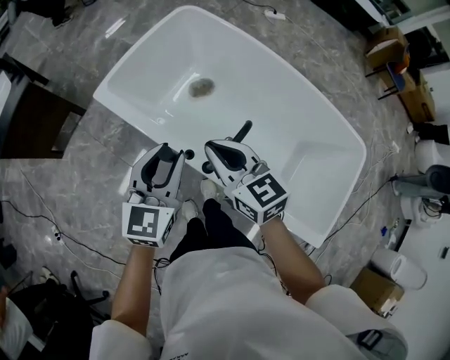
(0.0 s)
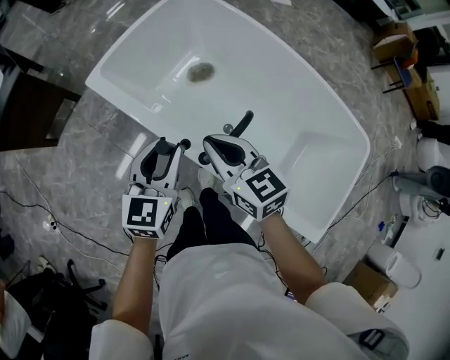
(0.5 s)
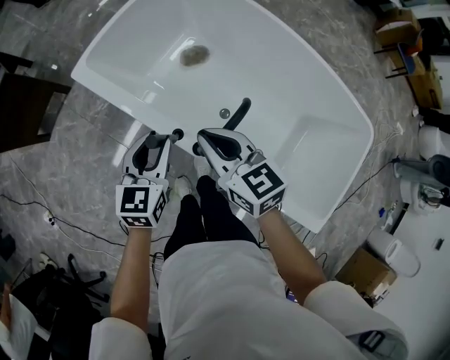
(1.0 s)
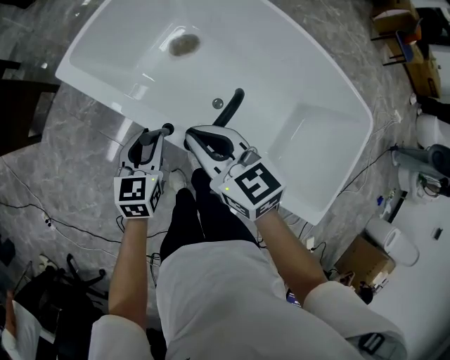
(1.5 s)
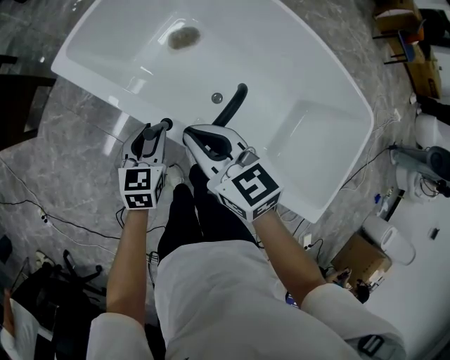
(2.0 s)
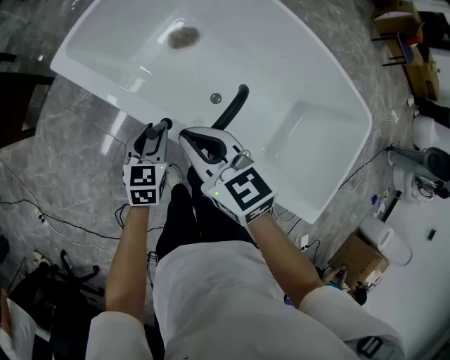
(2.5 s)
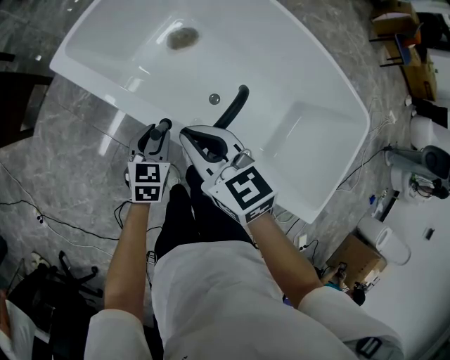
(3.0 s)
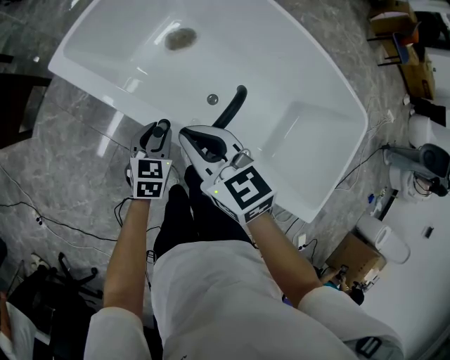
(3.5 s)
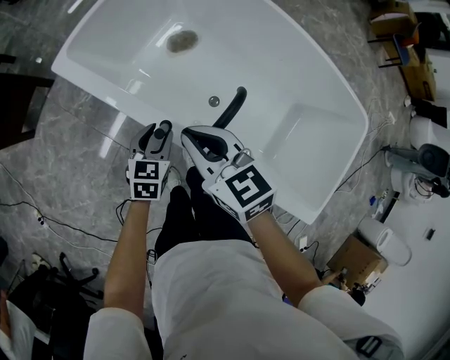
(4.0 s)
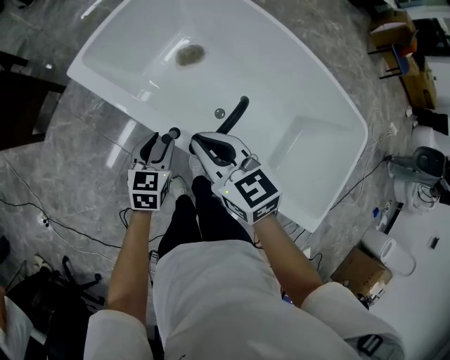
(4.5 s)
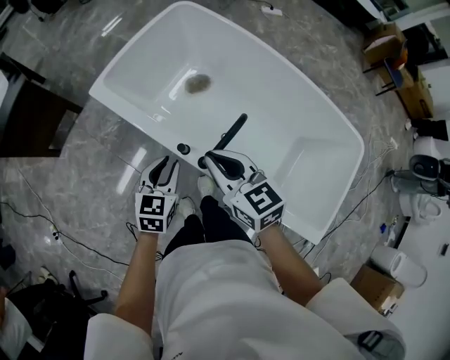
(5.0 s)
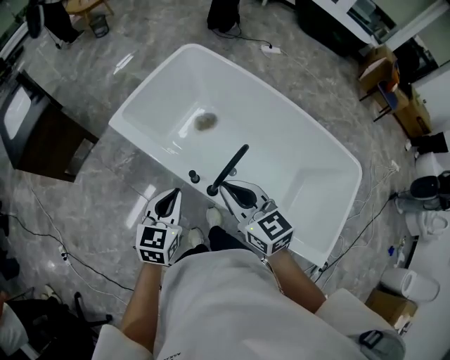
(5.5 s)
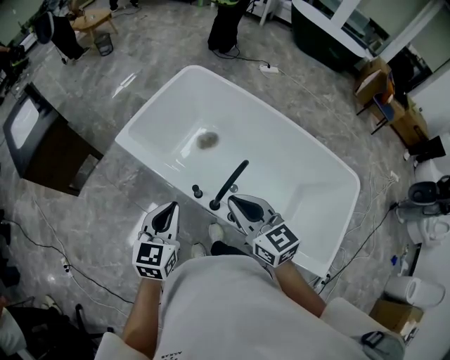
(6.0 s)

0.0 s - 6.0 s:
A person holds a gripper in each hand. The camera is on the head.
0.0 s - 2.0 s: The right gripper goes about 10 cm downward. Meanwhile the left gripper moves downward, some 25 cm, and swivels about 20 degrees.
2.0 s - 4.0 s: The grippers move only a little.
4.0 s - 6.0 s: The left gripper travels upward by roughly 30 cm, turns by approximately 20 degrees, and closes up. The right gripper moves upward and backward, approximately 20 cm.

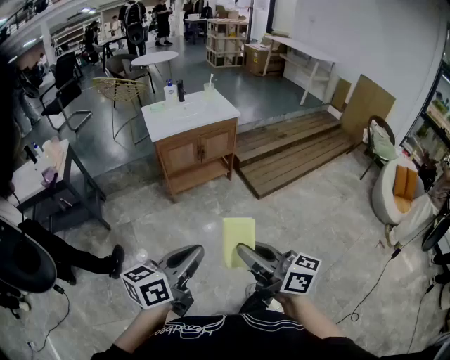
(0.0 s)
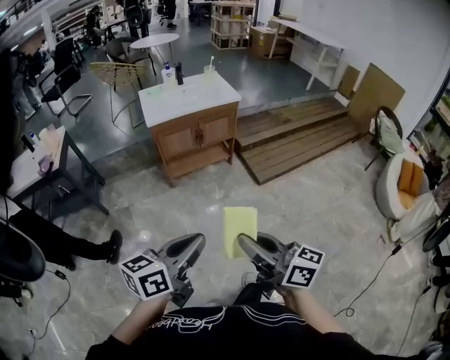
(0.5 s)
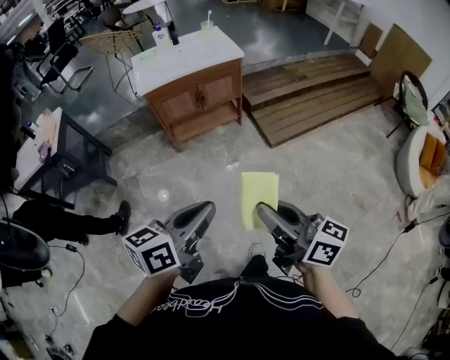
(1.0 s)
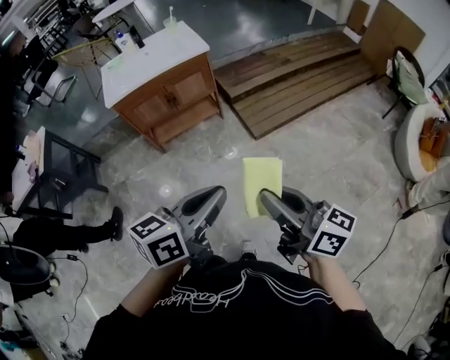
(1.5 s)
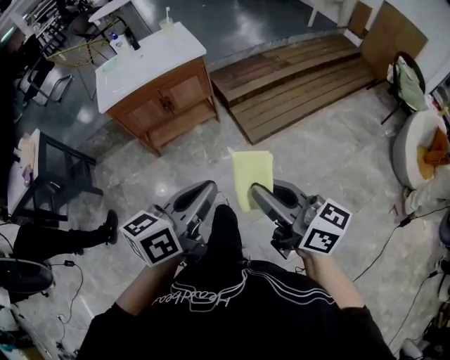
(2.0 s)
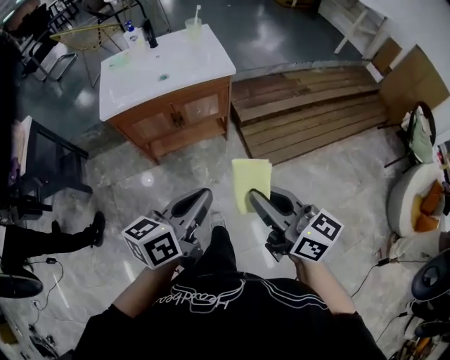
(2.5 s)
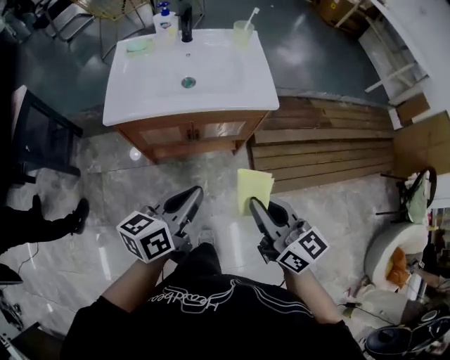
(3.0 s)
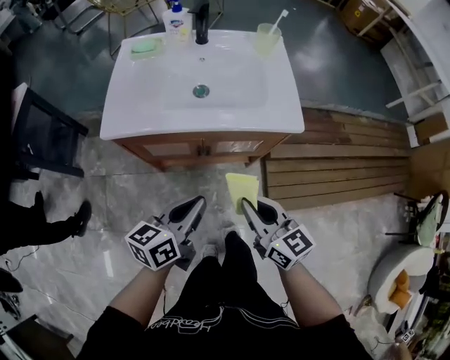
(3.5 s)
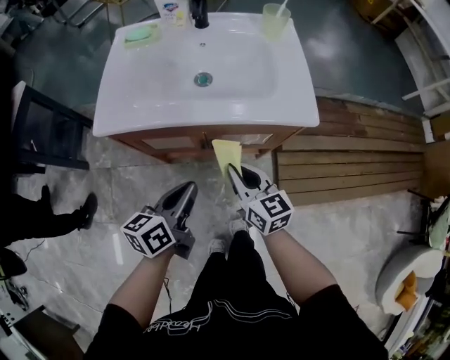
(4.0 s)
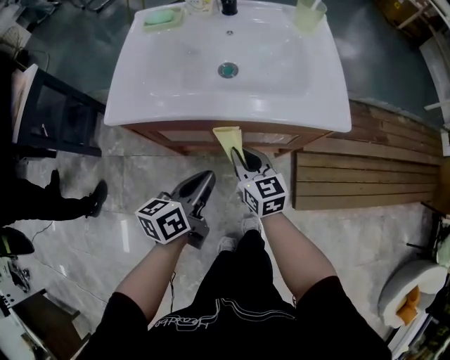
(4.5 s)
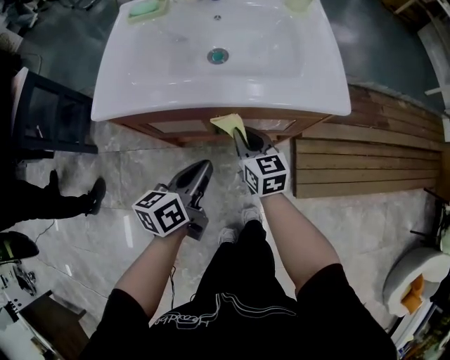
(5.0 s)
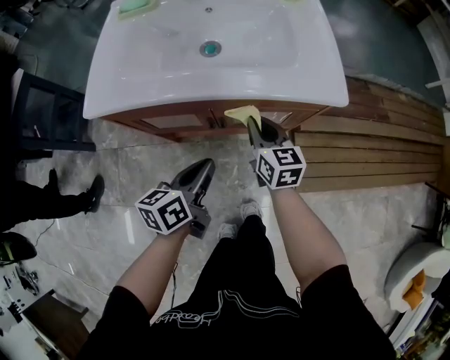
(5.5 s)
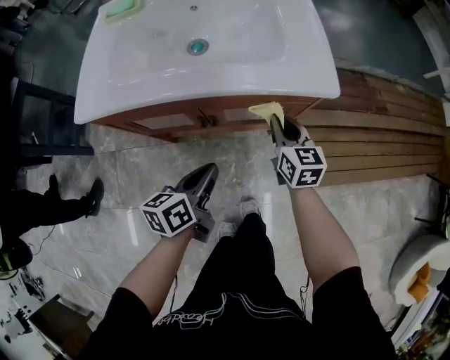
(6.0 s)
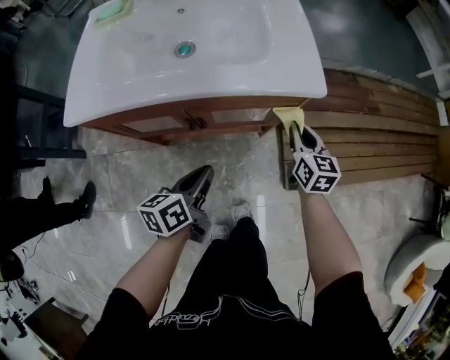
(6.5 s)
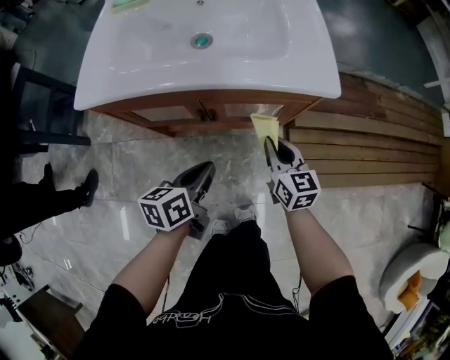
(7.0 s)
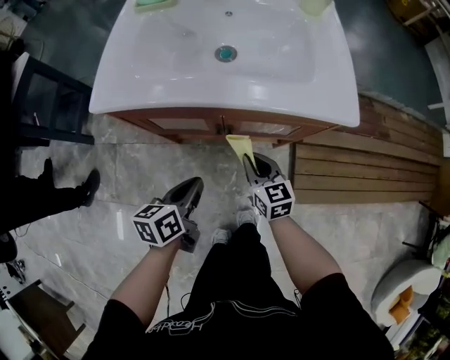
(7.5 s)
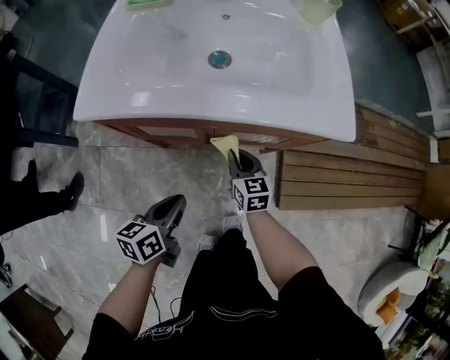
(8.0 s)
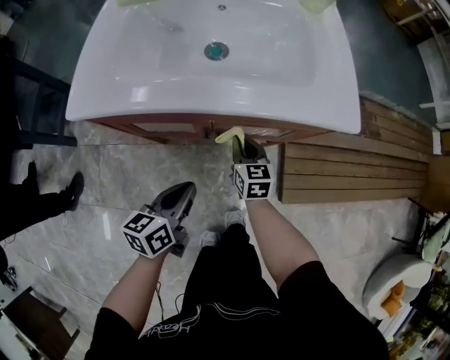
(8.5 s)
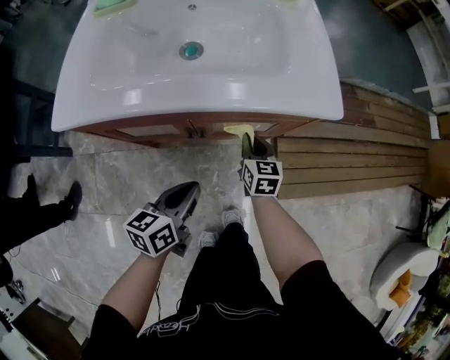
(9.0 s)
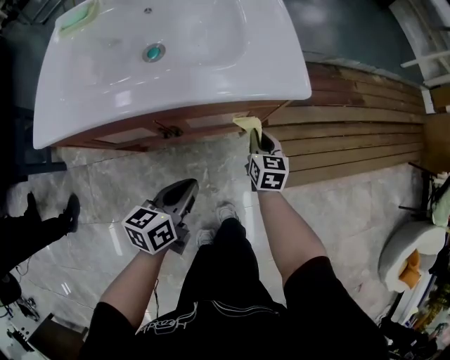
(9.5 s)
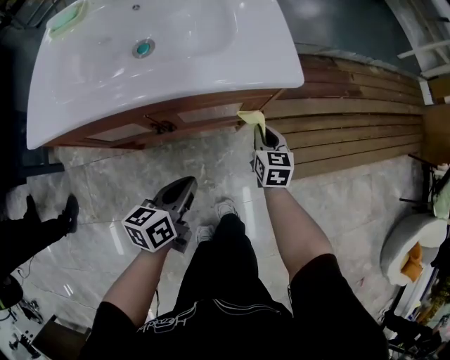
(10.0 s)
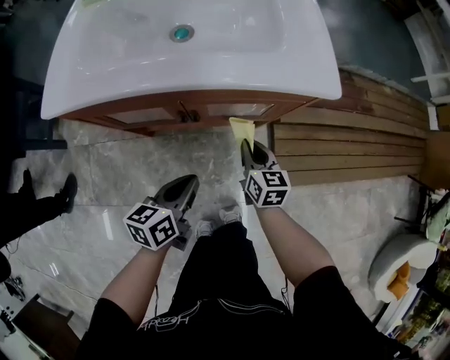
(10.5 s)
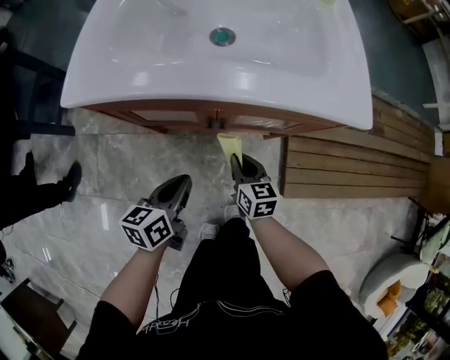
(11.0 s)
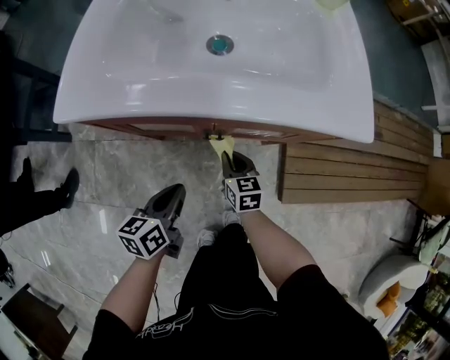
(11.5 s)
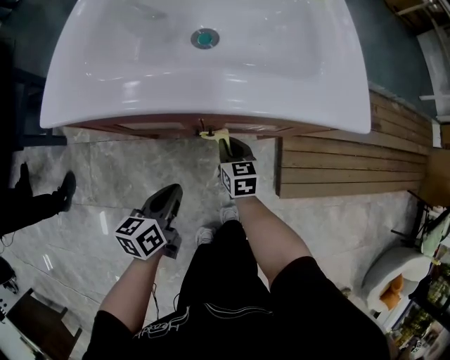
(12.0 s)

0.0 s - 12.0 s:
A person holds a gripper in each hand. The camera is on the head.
0.0 s - 2.0 s: Both grippers travel together to the right and forward, about 40 cm.
2.0 s - 4.0 s: Both grippers are carried forward, some 60 cm. Both grippers travel together downward, roughly 30 cm. The right gripper turns by approximately 30 degrees. The left gripper rotates approximately 30 degrees.
4.0 s - 6.0 s: The left gripper goes roughly 10 cm downward and to the right. The right gripper moves to the right, forward and downward, approximately 15 cm.
6.0 s - 8.0 s: The left gripper is displaced to the left by some 10 cm. Meanwhile the right gripper shifts some 15 cm to the left and downward.
8.0 s - 10.0 s: The left gripper shifts some 15 cm to the right. Meanwhile the right gripper travels to the right by approximately 20 cm, and turns by approximately 20 degrees.
10.0 s - 12.0 s: The left gripper shifts roughly 15 cm to the left. The right gripper goes some 20 cm to the left.

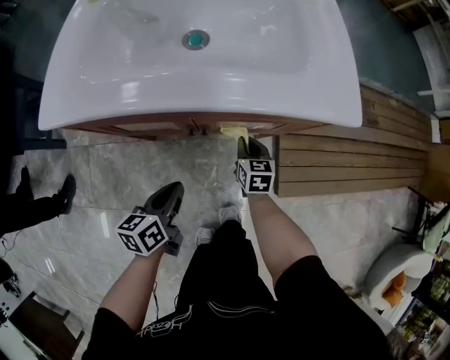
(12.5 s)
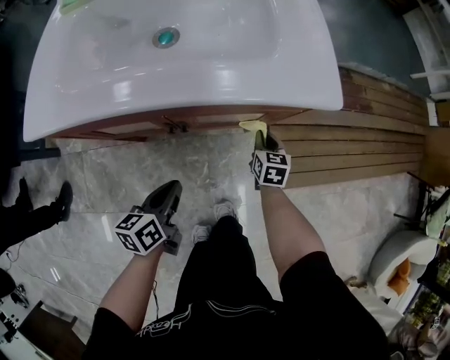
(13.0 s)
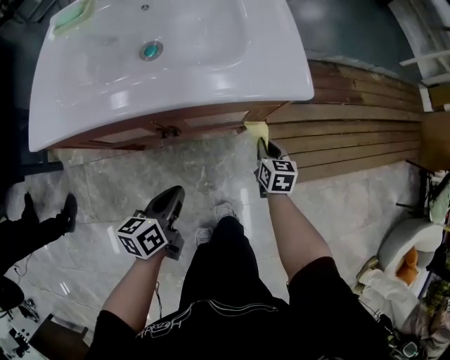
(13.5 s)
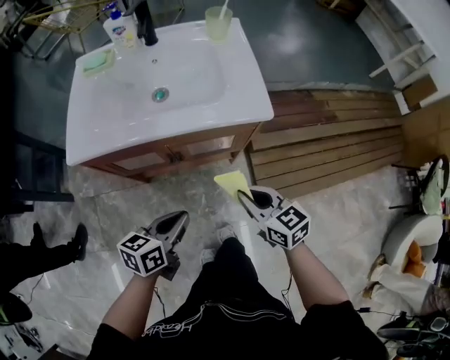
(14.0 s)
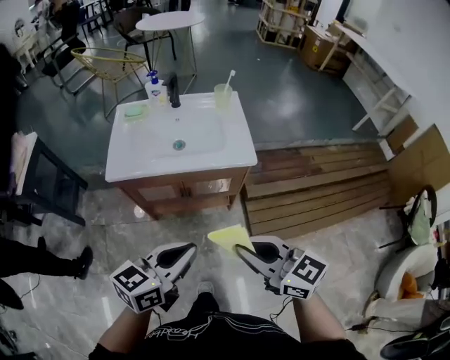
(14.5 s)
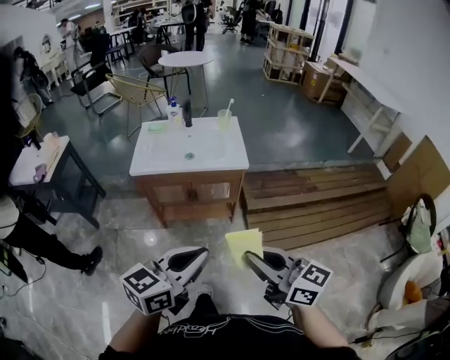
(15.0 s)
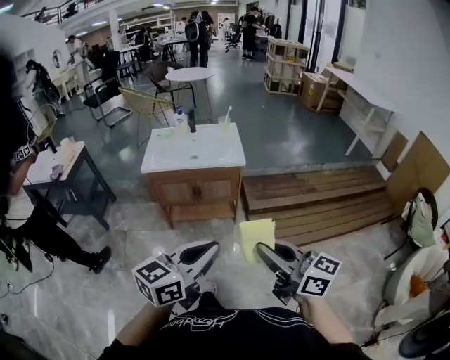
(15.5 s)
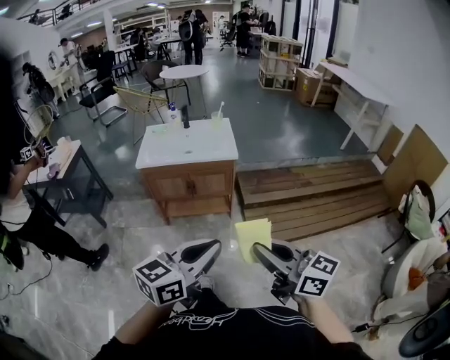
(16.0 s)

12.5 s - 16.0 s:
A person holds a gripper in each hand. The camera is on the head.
12.5 s - 14.5 s: The right gripper moves upward and backward, about 60 cm, and swivels approximately 40 degrees, while the left gripper heads upward, covering roughly 40 cm, and swivels roughly 40 degrees.
14.5 s - 16.0 s: The right gripper heads backward, covering roughly 30 cm; the left gripper goes roughly 35 cm backward and upward.

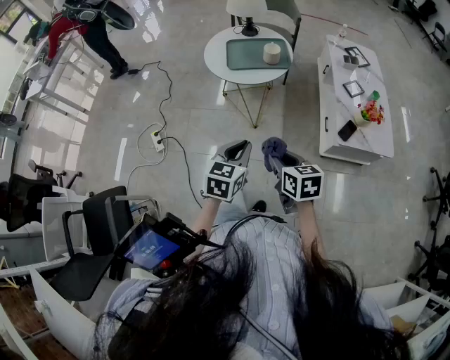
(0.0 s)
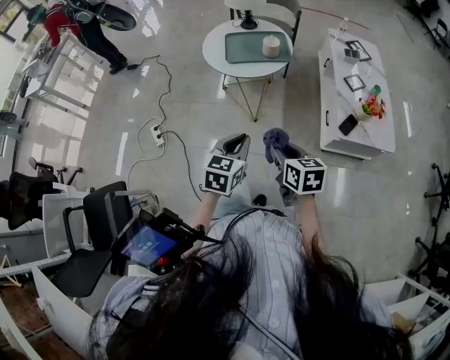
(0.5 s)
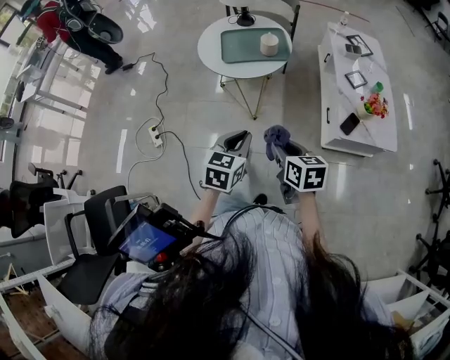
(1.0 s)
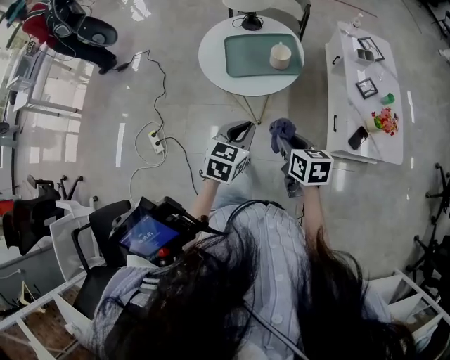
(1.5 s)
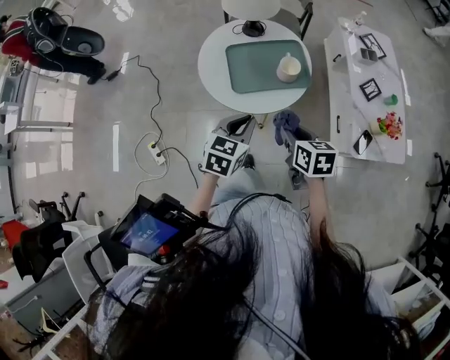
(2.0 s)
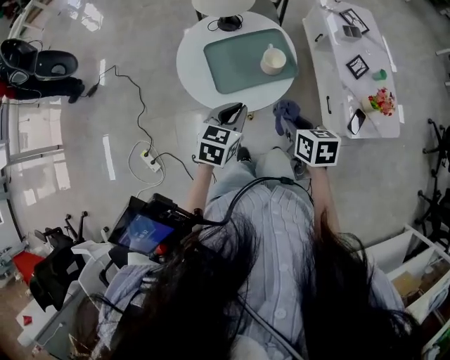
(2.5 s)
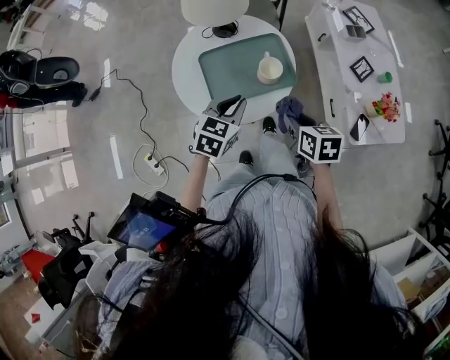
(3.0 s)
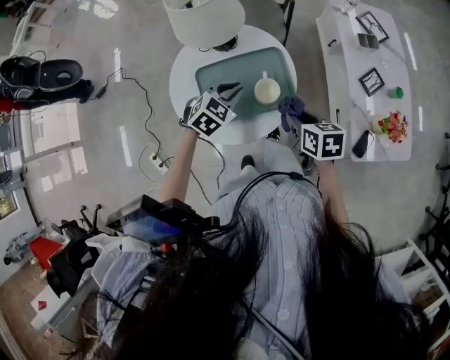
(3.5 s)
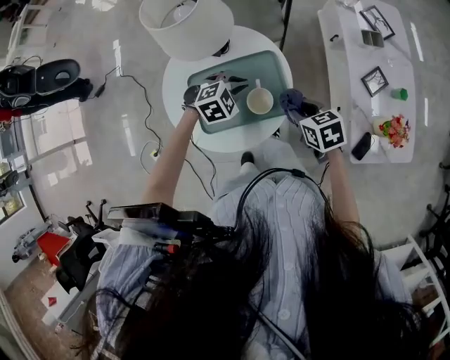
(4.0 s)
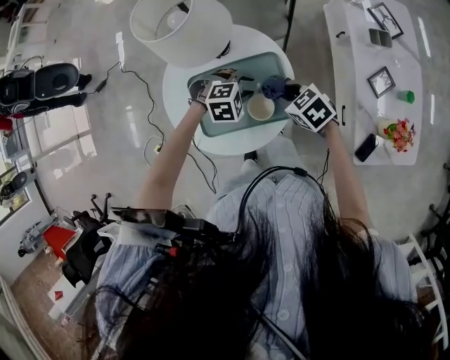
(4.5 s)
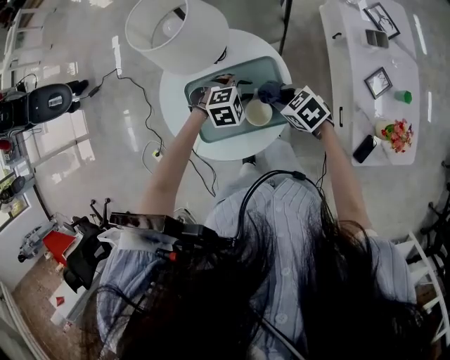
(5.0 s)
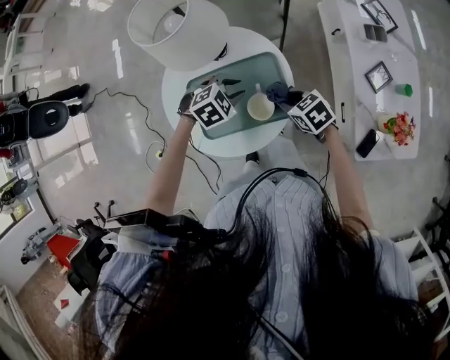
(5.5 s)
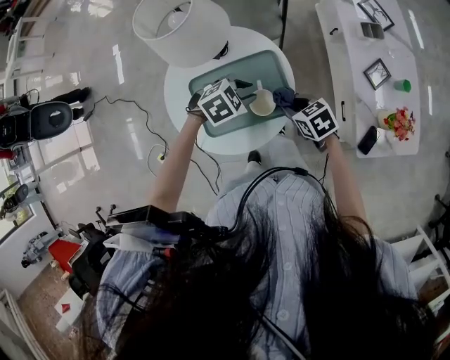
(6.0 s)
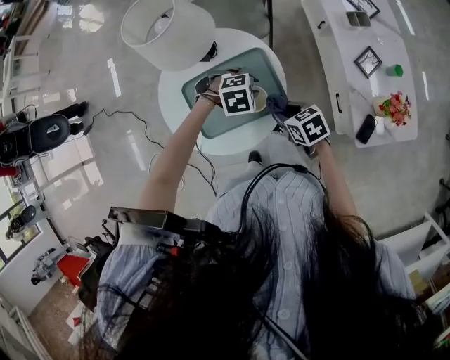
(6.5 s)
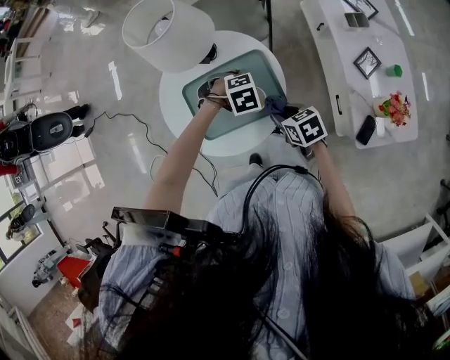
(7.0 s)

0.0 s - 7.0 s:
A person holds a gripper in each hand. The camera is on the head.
0.0 s - 2.0 s: Both grippers travel together forward, roughly 30 cm.
2.0 s - 3.5 s: The right gripper travels forward and to the right by roughly 20 cm. Meanwhile the left gripper travels forward by roughly 25 cm, and swivels about 30 degrees.
3.5 s - 5.0 s: The right gripper ends up roughly 15 cm from where it was, and swivels roughly 40 degrees. The left gripper is displaced downward by roughly 10 cm, swivels roughly 30 degrees, and opens.
5.0 s - 7.0 s: The right gripper ends up about 10 cm from where it was, and rotates some 30 degrees.
